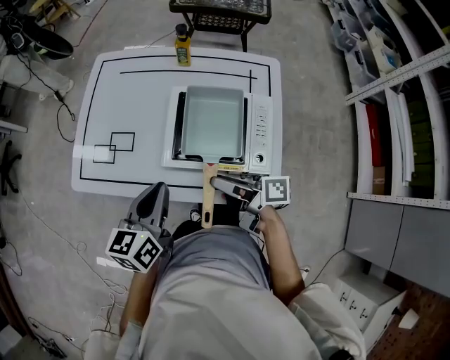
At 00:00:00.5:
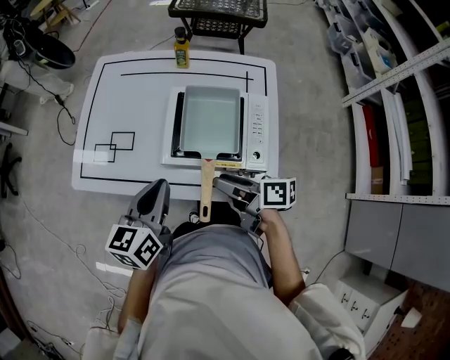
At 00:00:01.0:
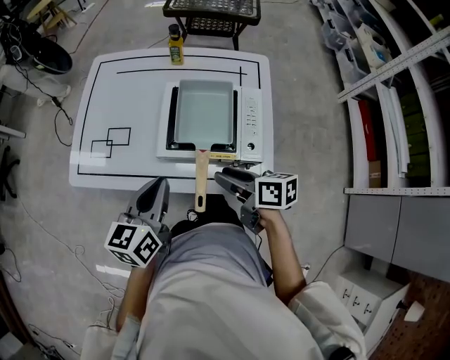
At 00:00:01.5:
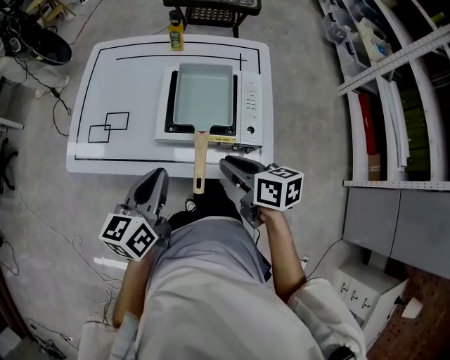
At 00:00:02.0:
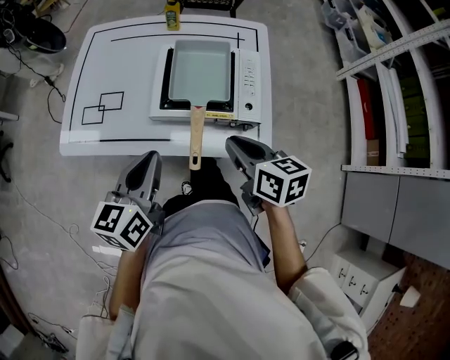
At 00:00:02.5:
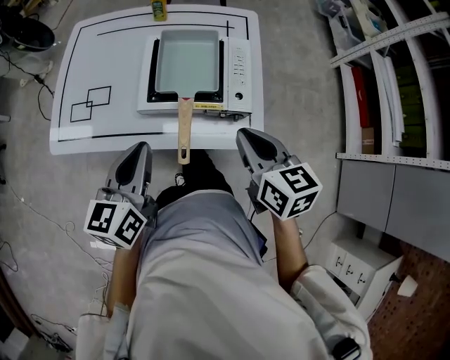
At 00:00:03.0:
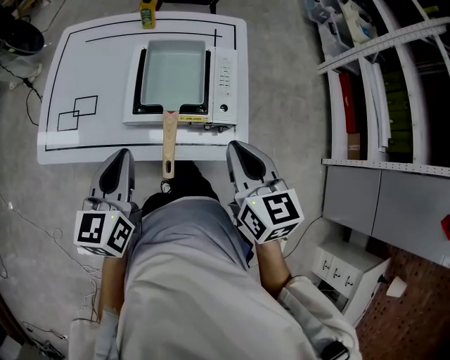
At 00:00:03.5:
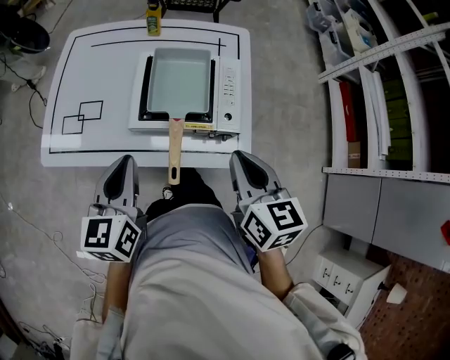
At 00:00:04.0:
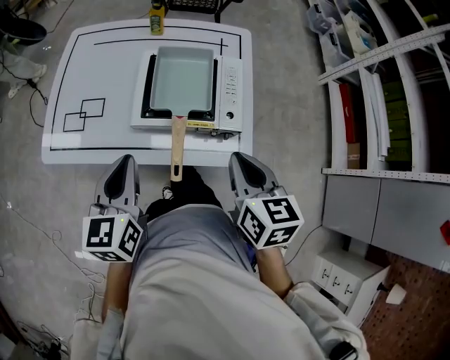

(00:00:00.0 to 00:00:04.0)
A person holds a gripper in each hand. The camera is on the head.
00:00:00.0 - 00:00:02.0: The two grippers go roughly 5 cm backward. The right gripper swivels approximately 50 degrees, and closes its fingers.
00:00:02.0 - 00:00:04.0: The right gripper moves upward, approximately 5 cm, and rotates some 20 degrees.

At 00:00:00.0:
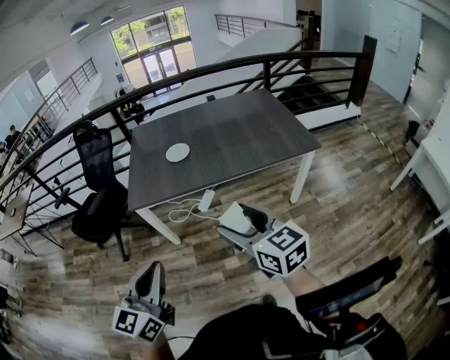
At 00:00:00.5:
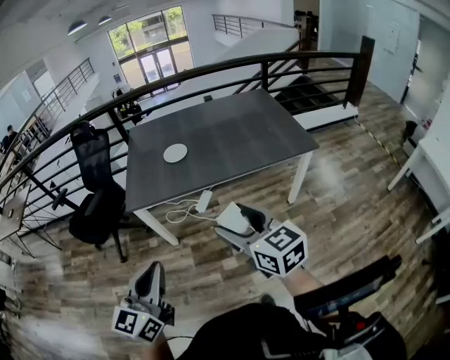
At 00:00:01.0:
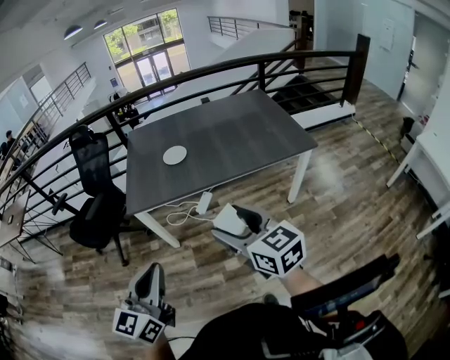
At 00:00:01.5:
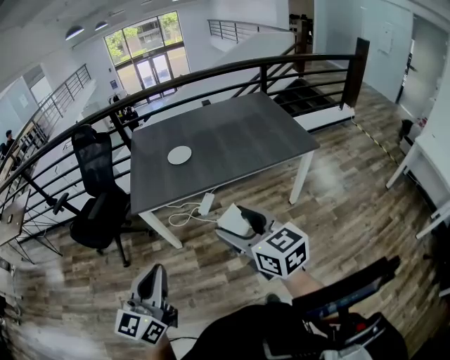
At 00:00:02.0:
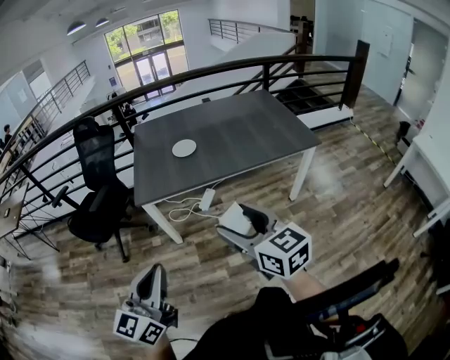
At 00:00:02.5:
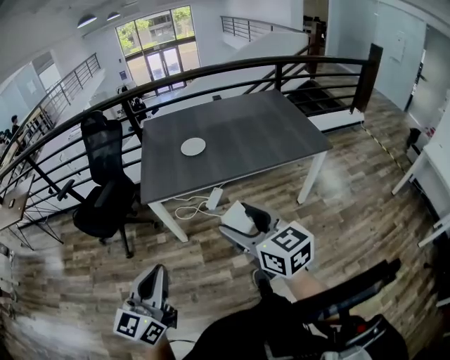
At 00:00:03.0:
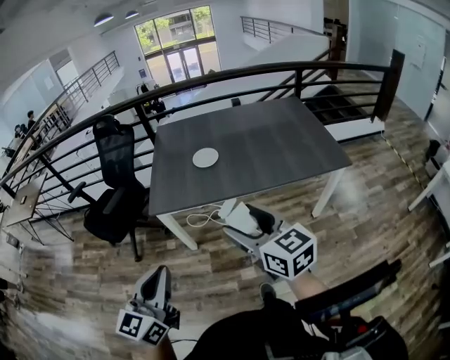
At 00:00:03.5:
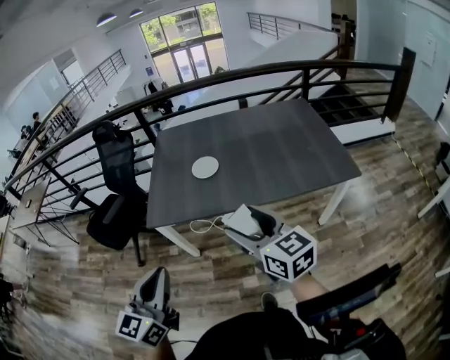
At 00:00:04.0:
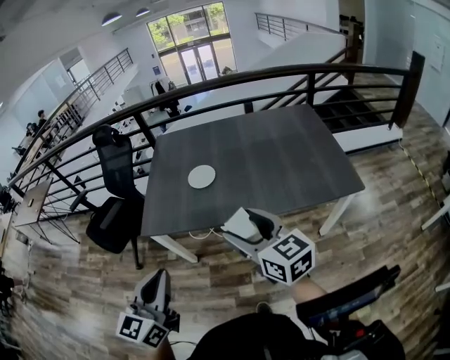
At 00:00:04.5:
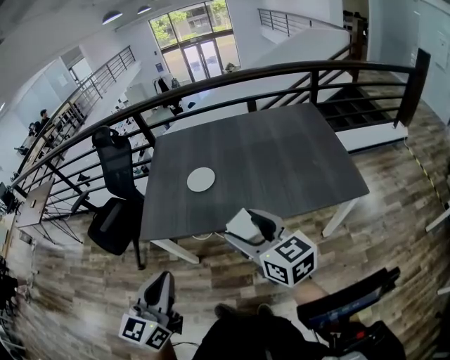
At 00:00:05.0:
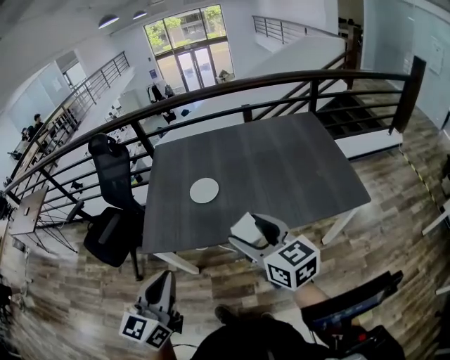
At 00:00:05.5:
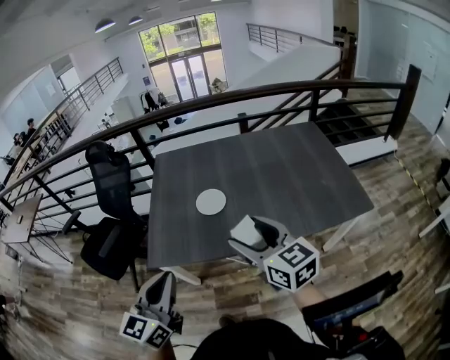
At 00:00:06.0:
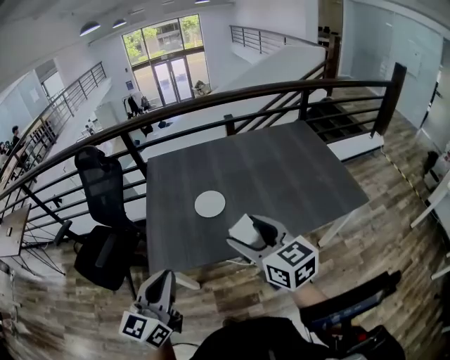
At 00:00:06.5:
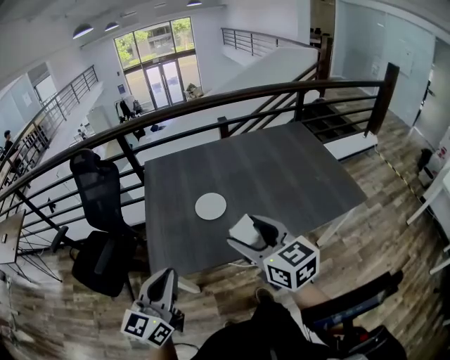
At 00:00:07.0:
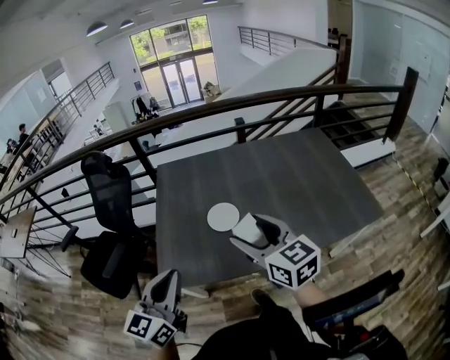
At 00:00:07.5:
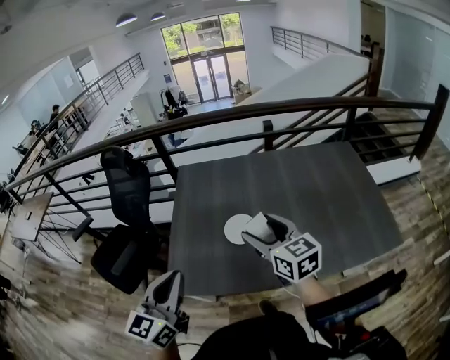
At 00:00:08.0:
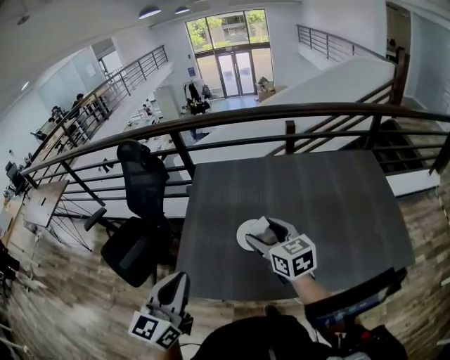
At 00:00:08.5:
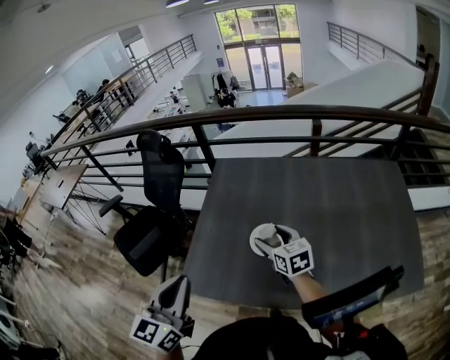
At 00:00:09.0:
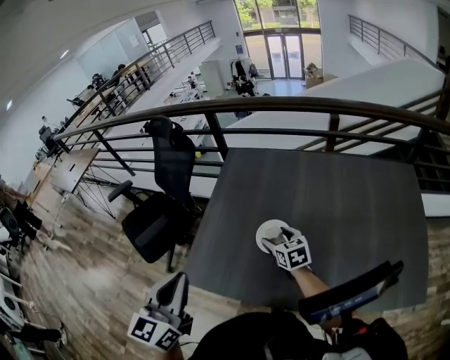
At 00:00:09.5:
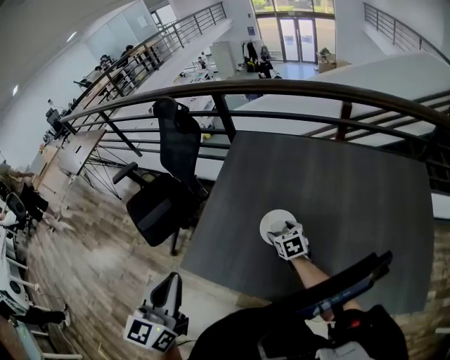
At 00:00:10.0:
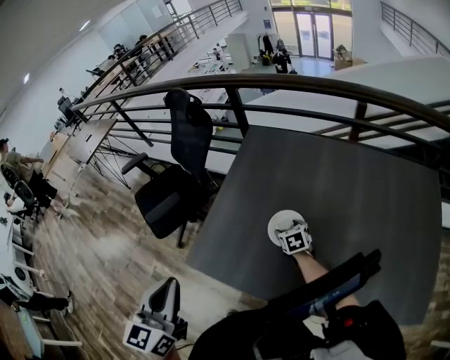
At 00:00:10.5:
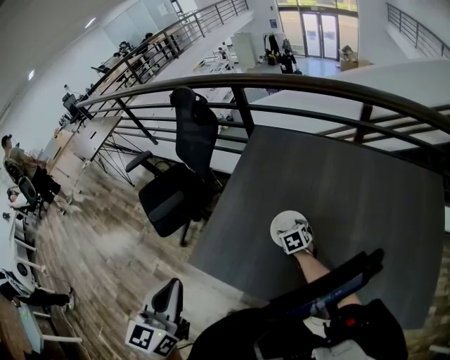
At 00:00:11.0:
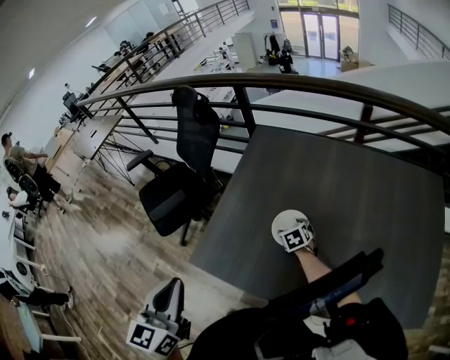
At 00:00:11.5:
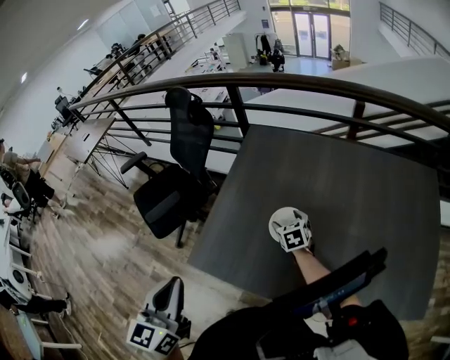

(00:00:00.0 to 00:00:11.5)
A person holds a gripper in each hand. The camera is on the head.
00:00:00.0 - 00:00:02.0: Both grippers travel together to the left, roughly 10 cm.
00:00:02.0 - 00:00:04.0: Both grippers travel together forward and to the right, approximately 30 cm.
00:00:04.0 - 00:00:06.0: The two grippers go about 20 cm forward and to the left.
00:00:06.0 - 00:00:07.5: The grippers both shift forward by some 15 cm.
00:00:07.5 - 00:00:09.5: The right gripper moves downward and forward, some 30 cm, and turns by roughly 30 degrees. The left gripper turns by some 30 degrees.

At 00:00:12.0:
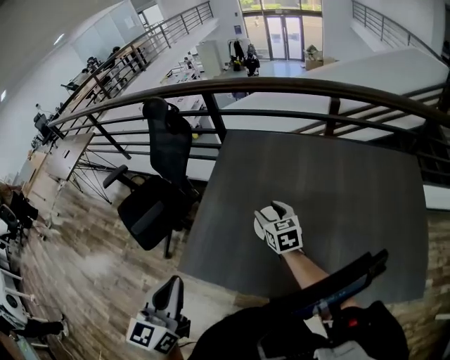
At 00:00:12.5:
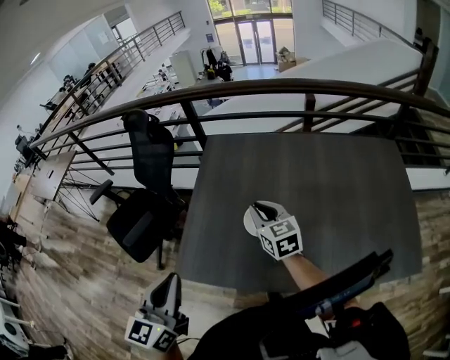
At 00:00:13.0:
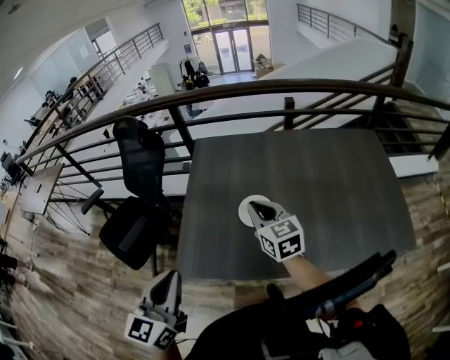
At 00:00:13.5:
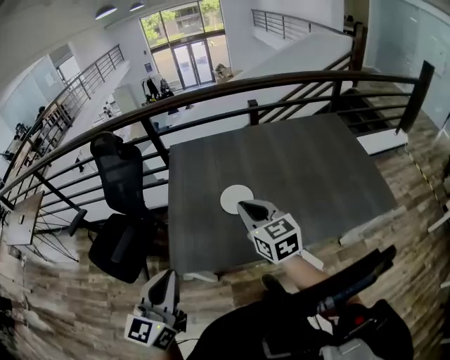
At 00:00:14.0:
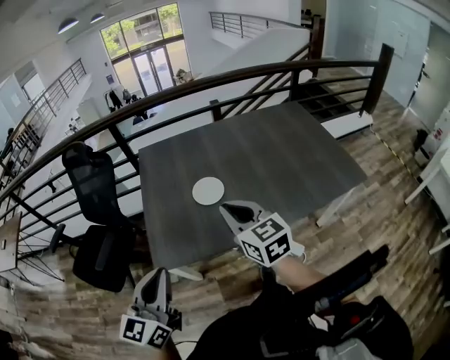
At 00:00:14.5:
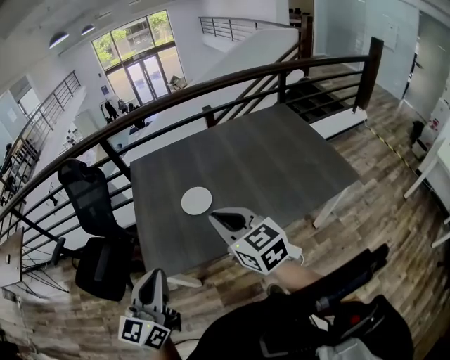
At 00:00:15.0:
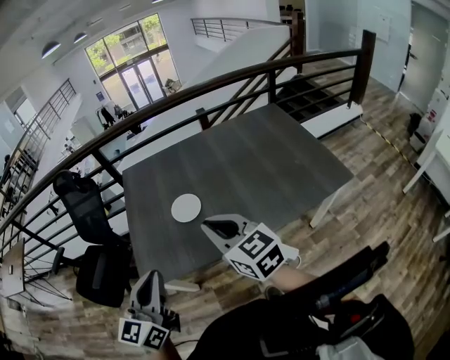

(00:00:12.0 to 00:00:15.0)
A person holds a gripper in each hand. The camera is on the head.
00:00:12.0 - 00:00:13.5: The right gripper is displaced backward and upward by about 25 cm, changes its angle by approximately 20 degrees, and closes up. The left gripper is displaced backward and to the left by about 10 cm, and swivels some 30 degrees.
00:00:13.5 - 00:00:15.0: The right gripper heads backward, to the right and upward, covering approximately 15 cm. The left gripper travels to the right by about 10 cm.

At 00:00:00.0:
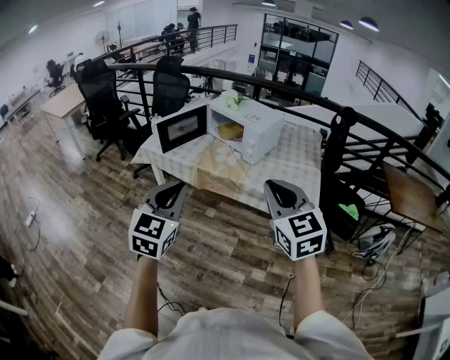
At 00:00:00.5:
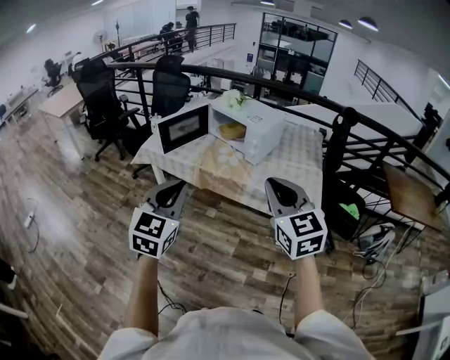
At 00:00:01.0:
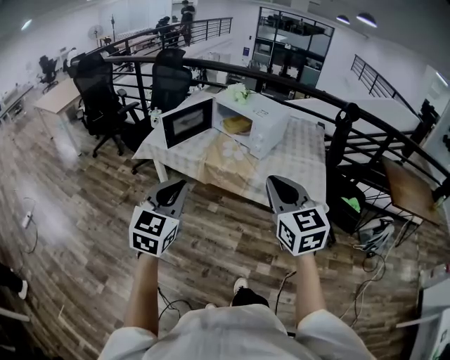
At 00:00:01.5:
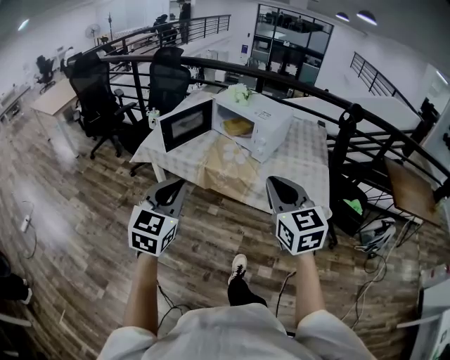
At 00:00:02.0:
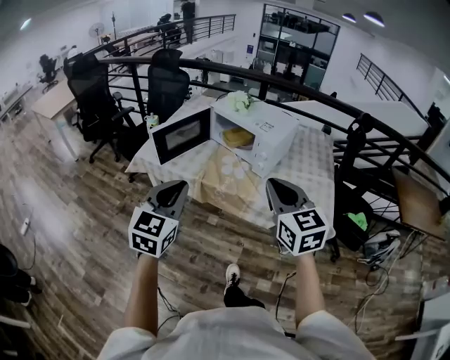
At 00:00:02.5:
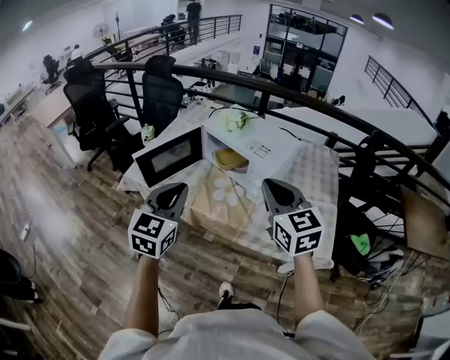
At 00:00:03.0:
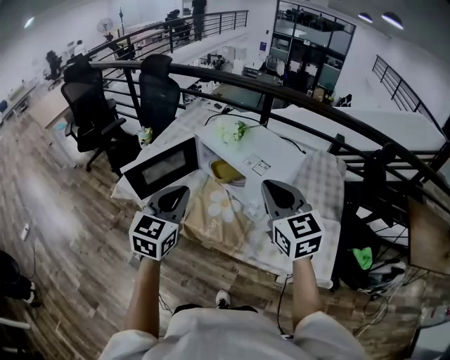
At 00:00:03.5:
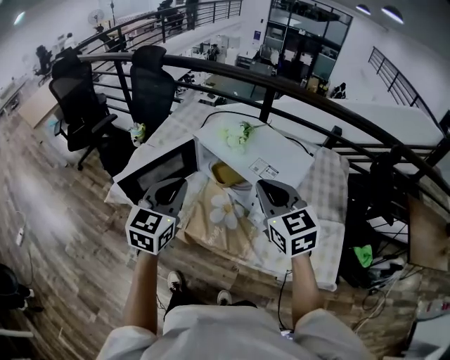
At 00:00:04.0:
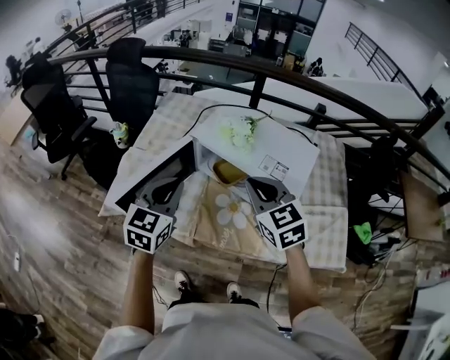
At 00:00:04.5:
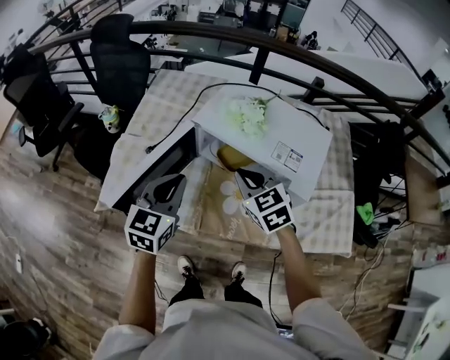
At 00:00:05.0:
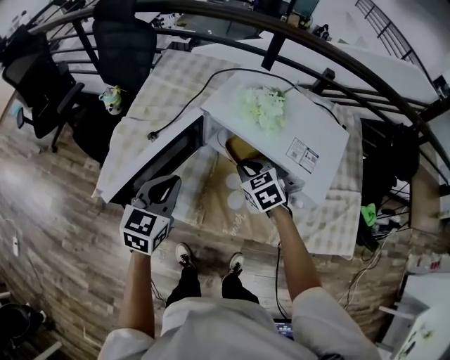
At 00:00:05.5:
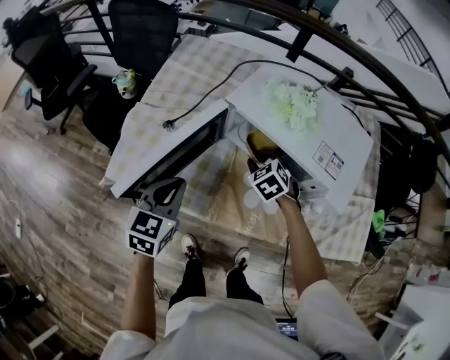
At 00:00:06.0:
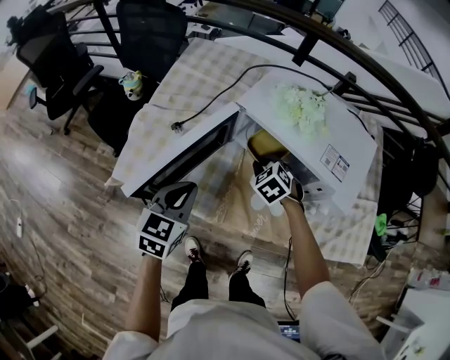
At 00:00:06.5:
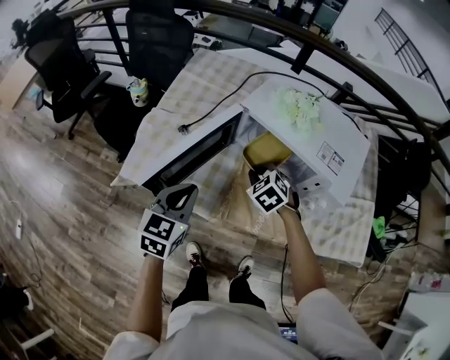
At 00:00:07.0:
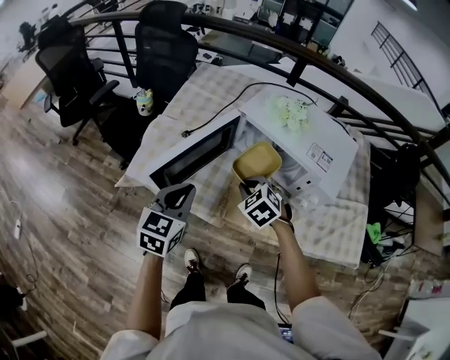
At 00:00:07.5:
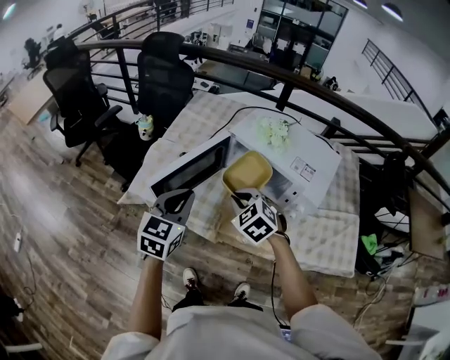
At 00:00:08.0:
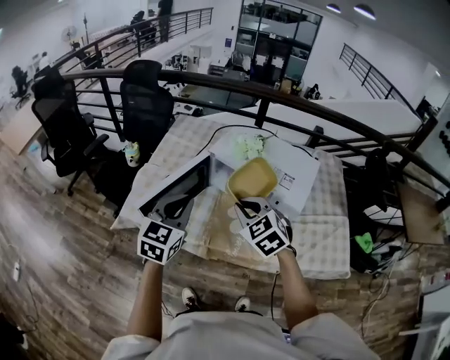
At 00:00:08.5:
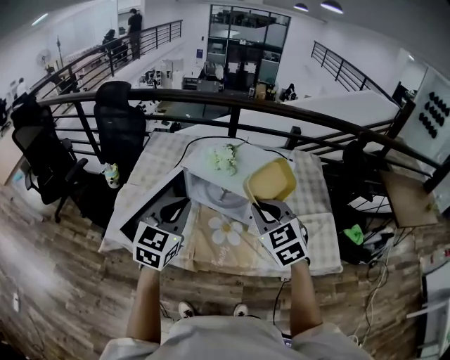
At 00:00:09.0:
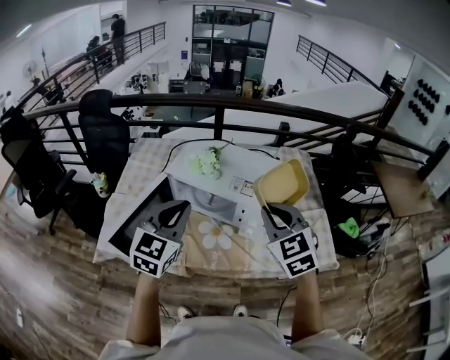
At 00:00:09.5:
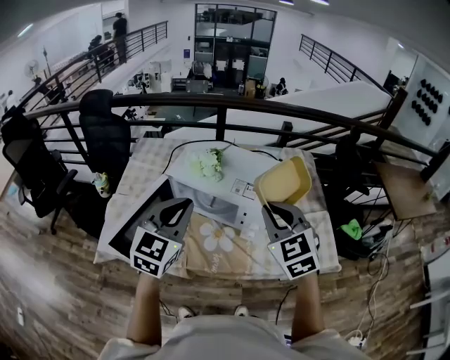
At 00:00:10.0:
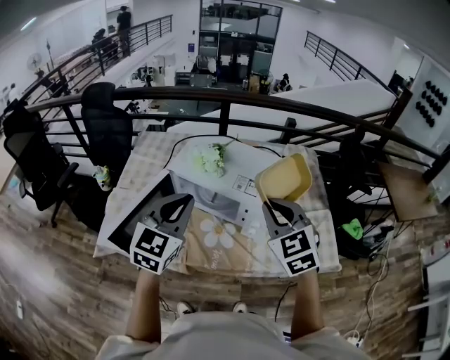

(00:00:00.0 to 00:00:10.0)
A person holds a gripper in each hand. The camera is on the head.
00:00:00.0 - 00:00:02.0: Both grippers move forward, some 20 cm.
00:00:02.0 - 00:00:04.0: The two grippers travel together, forward, some 40 cm.
00:00:04.0 - 00:00:06.0: The right gripper travels downward and forward by some 30 cm, and tilts its fingers some 30 degrees downward; the left gripper heads downward and to the left, covering approximately 15 cm.
00:00:06.0 - 00:00:08.0: The left gripper shifts some 20 cm upward and backward, while the right gripper moves upward and backward, some 30 cm, and rotates about 20 degrees.
00:00:08.0 - 00:00:10.0: The left gripper travels to the right, upward and forward by about 15 cm; the right gripper moves to the right and upward, about 20 cm, and swivels about 20 degrees.
